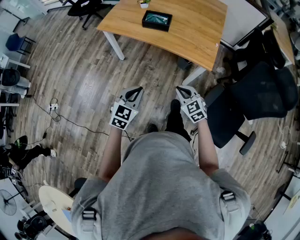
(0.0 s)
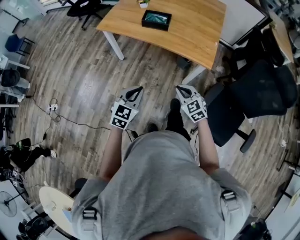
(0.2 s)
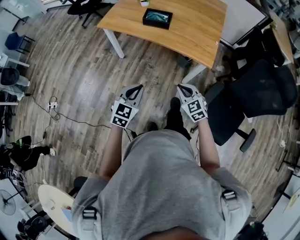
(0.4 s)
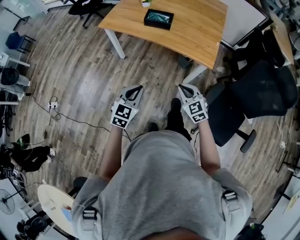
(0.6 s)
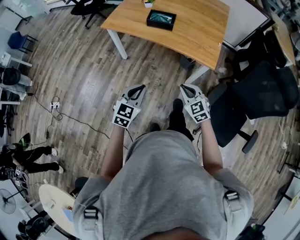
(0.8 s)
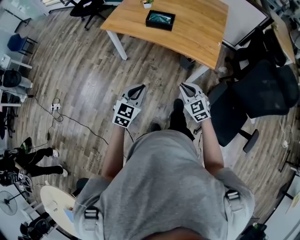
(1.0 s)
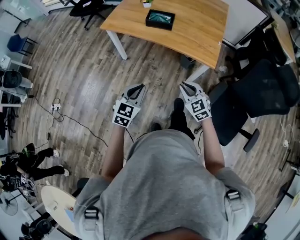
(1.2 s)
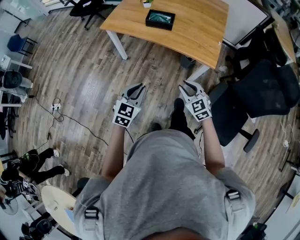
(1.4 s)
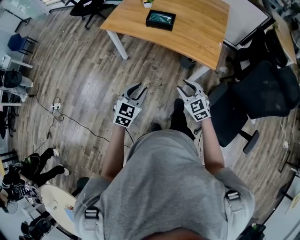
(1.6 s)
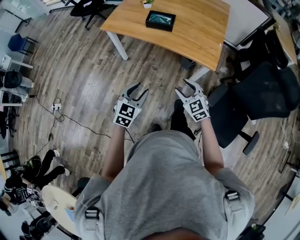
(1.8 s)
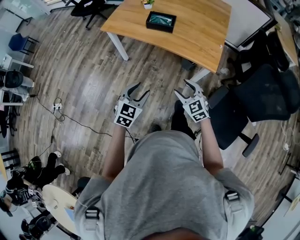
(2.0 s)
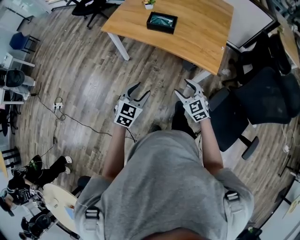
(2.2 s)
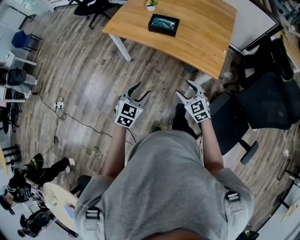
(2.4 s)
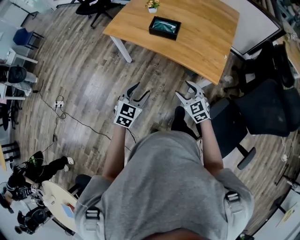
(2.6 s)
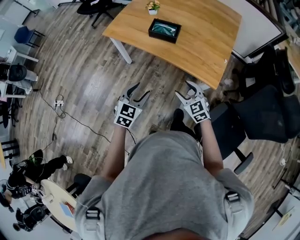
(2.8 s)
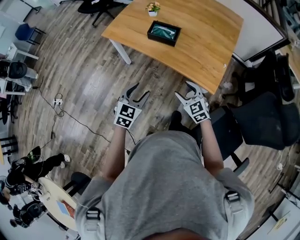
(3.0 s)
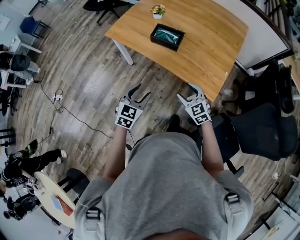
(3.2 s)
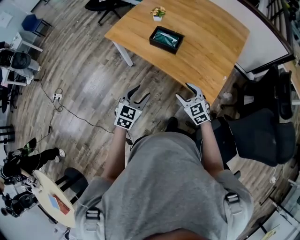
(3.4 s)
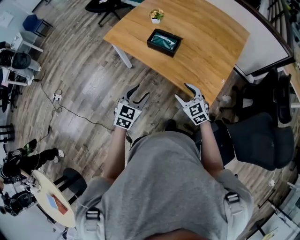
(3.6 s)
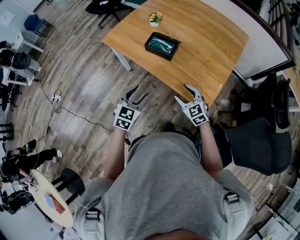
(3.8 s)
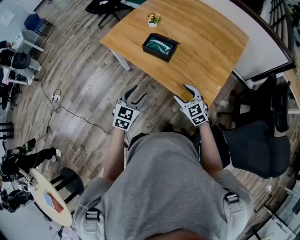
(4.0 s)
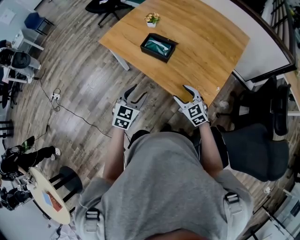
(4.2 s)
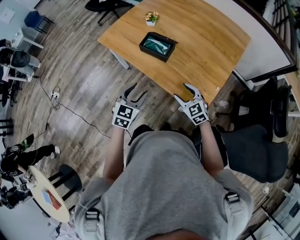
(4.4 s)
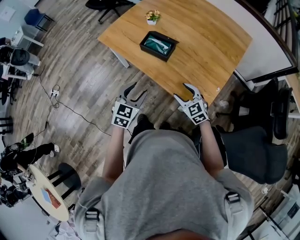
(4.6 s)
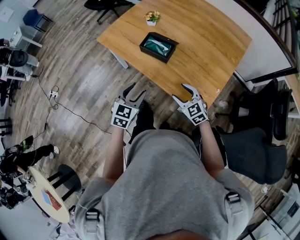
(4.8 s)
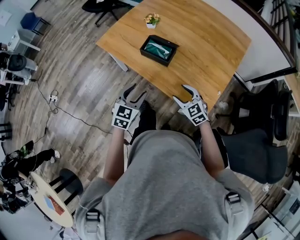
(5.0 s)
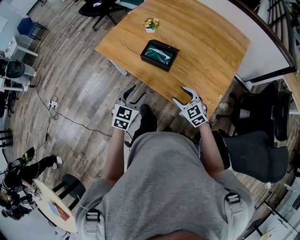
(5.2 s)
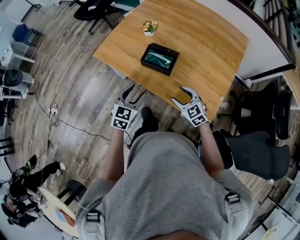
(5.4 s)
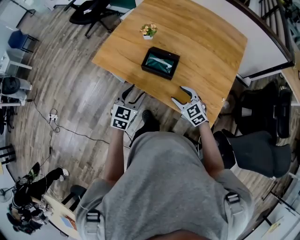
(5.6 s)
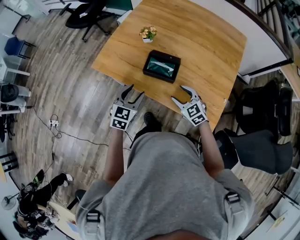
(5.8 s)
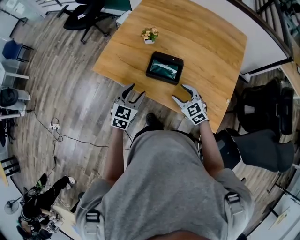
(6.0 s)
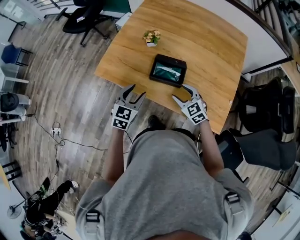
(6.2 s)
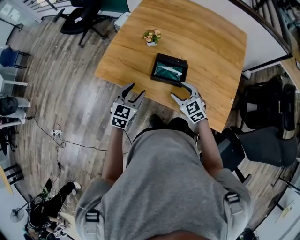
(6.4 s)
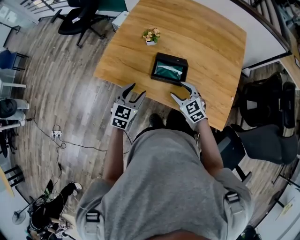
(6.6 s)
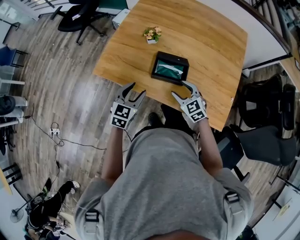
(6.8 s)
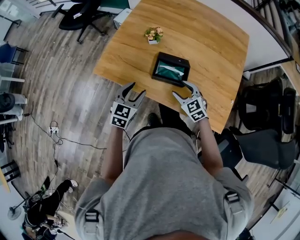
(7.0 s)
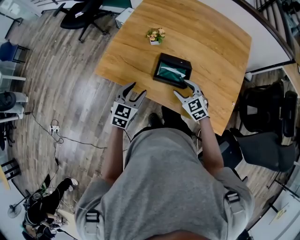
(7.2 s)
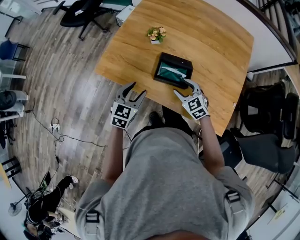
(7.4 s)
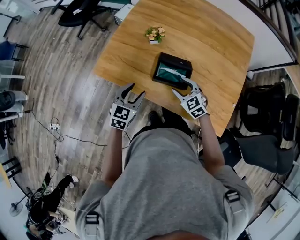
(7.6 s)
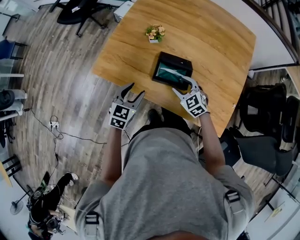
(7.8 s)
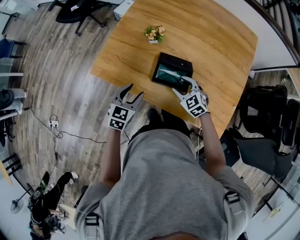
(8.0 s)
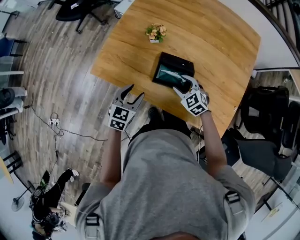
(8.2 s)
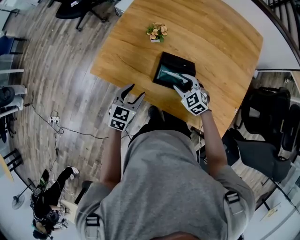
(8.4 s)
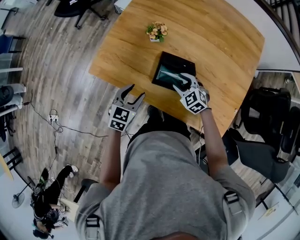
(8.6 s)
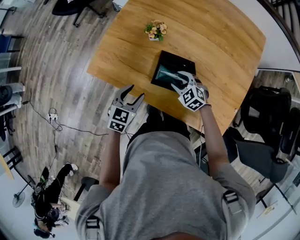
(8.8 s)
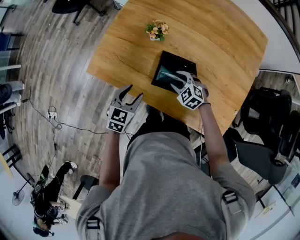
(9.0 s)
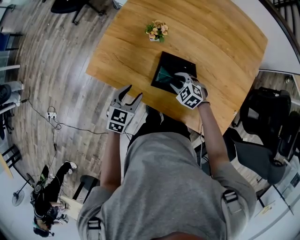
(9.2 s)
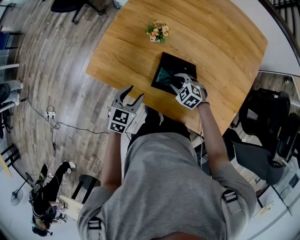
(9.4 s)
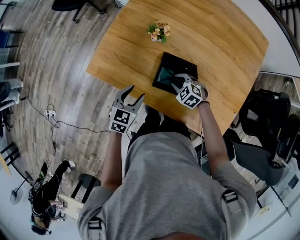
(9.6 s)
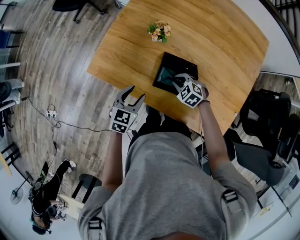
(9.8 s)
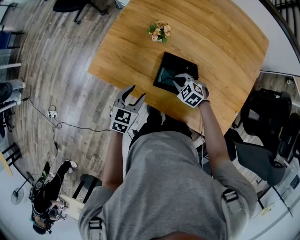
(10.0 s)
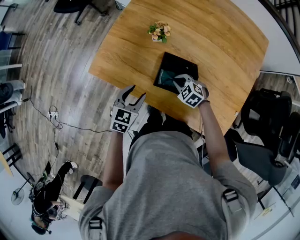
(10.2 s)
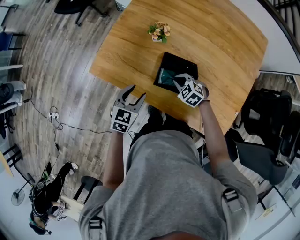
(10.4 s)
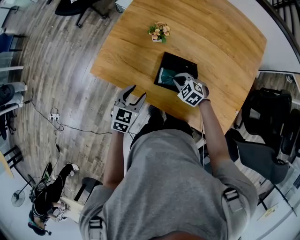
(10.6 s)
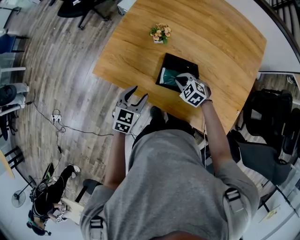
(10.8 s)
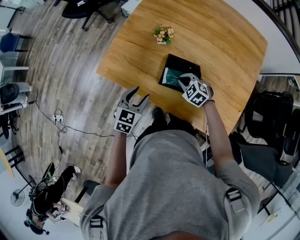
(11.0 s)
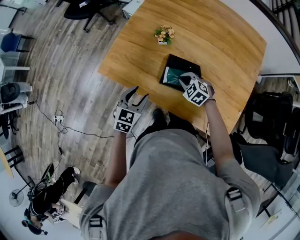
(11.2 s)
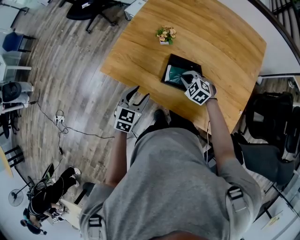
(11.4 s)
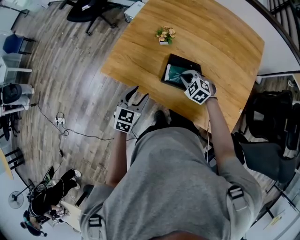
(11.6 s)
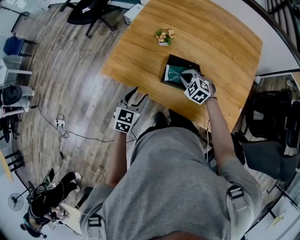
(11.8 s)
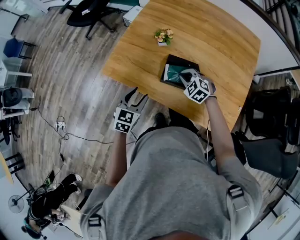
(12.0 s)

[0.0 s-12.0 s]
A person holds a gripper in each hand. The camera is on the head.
0.0 to 1.6 s: The left gripper opens, while the right gripper opens.
1.6 to 3.0 s: The left gripper moves forward and to the right, some 15 cm, and opens up, while the right gripper shifts roughly 15 cm forward, and opens its fingers.
3.0 to 4.4 s: The right gripper heads forward and to the right, covering approximately 15 cm. Meanwhile the left gripper heads to the right and forward, covering approximately 15 cm.
4.4 to 6.0 s: The grippers both shift forward and to the left by roughly 20 cm.
6.0 to 7.6 s: Both grippers move forward, approximately 5 cm.
7.6 to 9.0 s: The right gripper travels downward and forward by approximately 10 cm, and swivels approximately 20 degrees, while the left gripper heads downward, covering approximately 5 cm.
9.0 to 10.4 s: The right gripper closes its fingers.
10.4 to 12.0 s: The left gripper is displaced upward and backward by about 10 cm; the right gripper heads upward, covering some 10 cm.

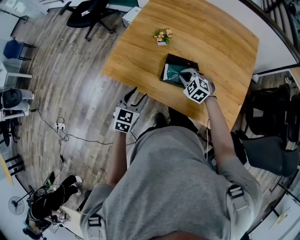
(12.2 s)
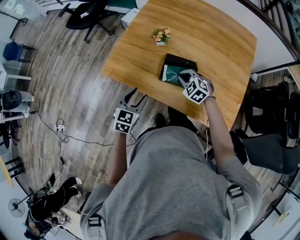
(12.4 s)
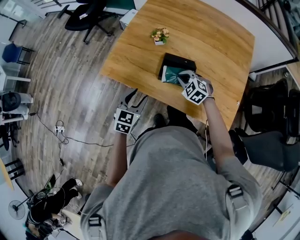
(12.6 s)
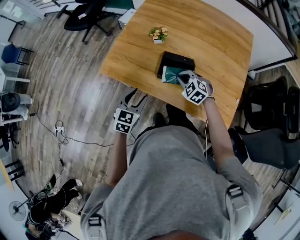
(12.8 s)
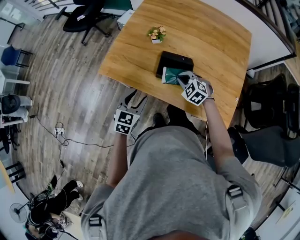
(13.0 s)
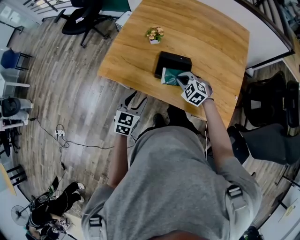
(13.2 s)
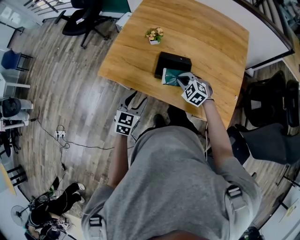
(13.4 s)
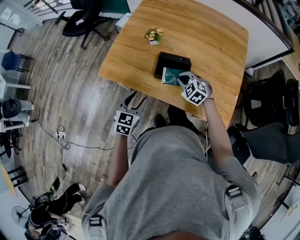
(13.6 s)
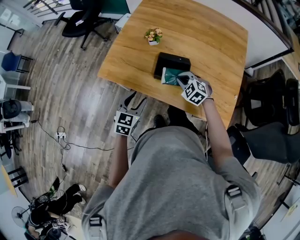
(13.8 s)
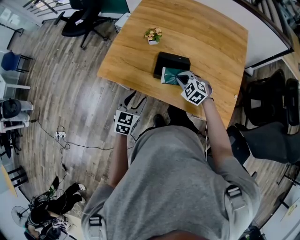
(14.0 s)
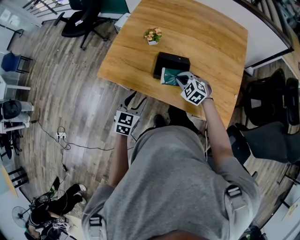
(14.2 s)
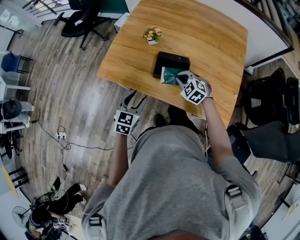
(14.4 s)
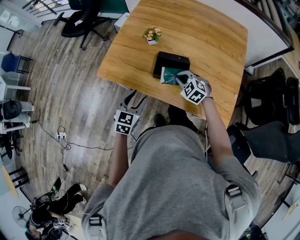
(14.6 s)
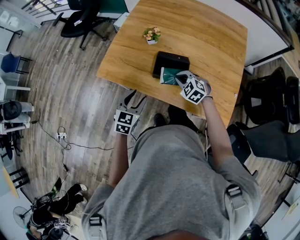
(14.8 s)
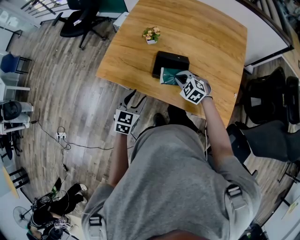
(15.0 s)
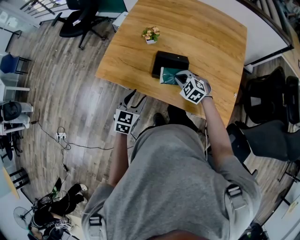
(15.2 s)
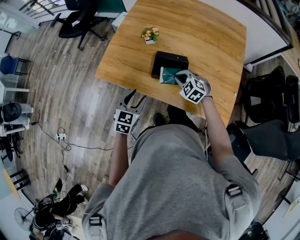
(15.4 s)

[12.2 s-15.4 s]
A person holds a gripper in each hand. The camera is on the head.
12.2 to 13.8 s: Both grippers travel together backward, approximately 5 cm.
13.8 to 15.4 s: The grippers make only small movements.

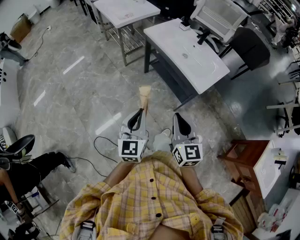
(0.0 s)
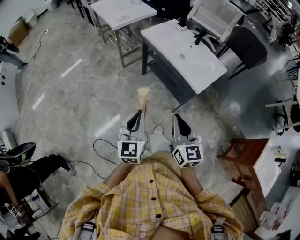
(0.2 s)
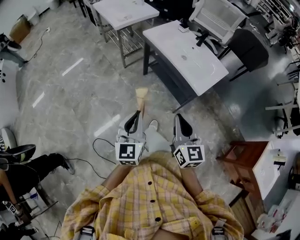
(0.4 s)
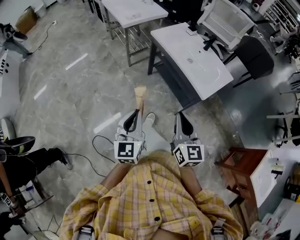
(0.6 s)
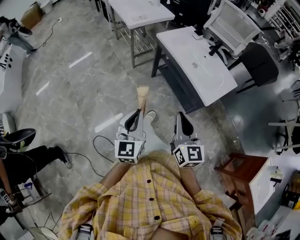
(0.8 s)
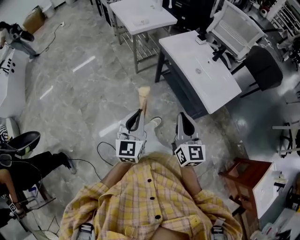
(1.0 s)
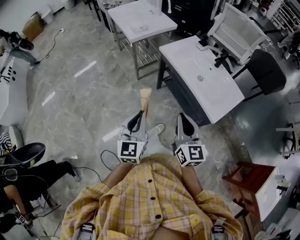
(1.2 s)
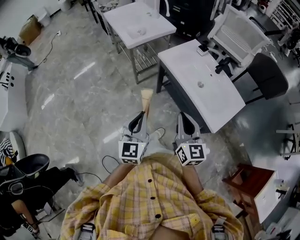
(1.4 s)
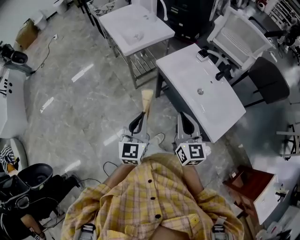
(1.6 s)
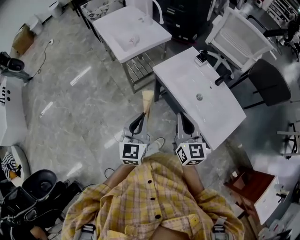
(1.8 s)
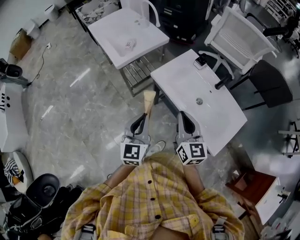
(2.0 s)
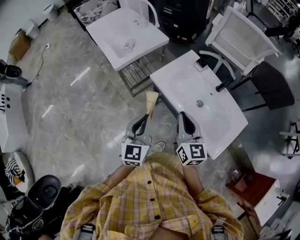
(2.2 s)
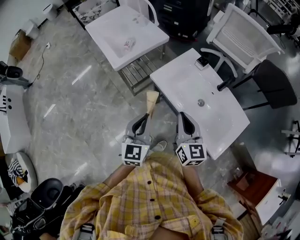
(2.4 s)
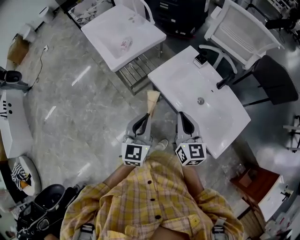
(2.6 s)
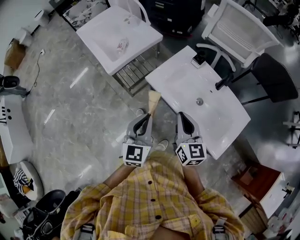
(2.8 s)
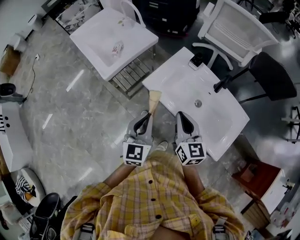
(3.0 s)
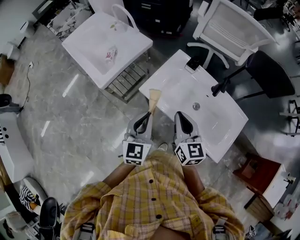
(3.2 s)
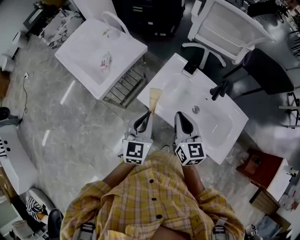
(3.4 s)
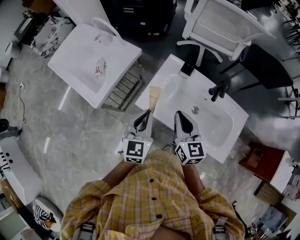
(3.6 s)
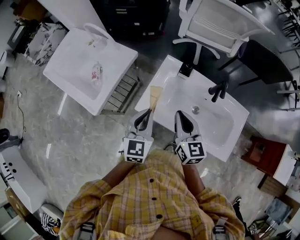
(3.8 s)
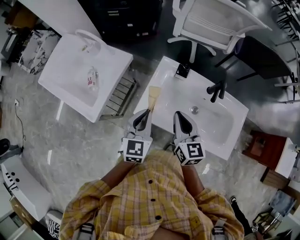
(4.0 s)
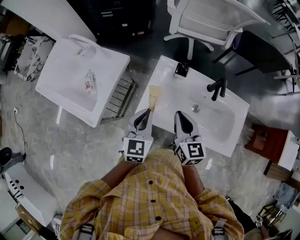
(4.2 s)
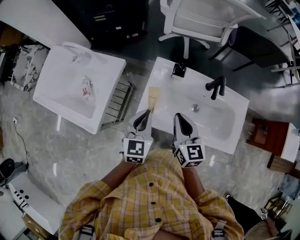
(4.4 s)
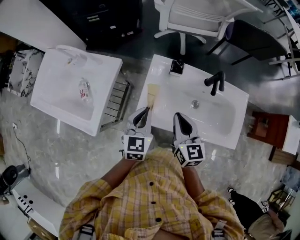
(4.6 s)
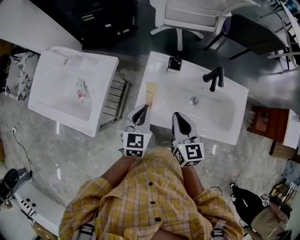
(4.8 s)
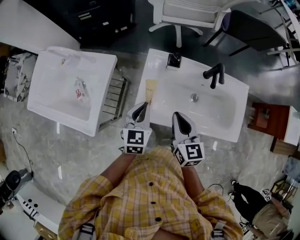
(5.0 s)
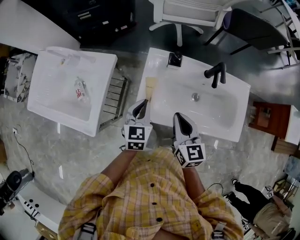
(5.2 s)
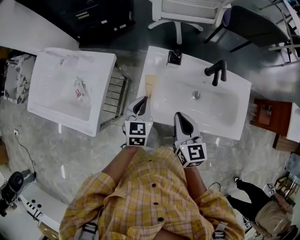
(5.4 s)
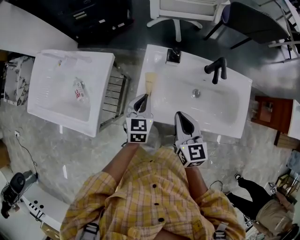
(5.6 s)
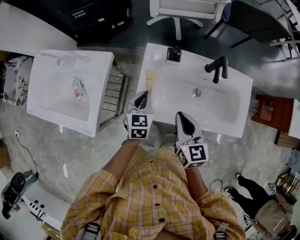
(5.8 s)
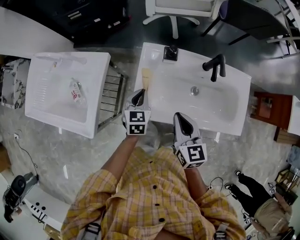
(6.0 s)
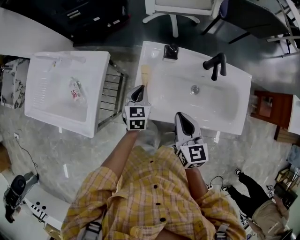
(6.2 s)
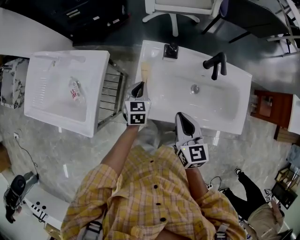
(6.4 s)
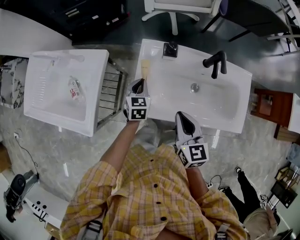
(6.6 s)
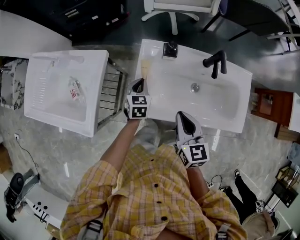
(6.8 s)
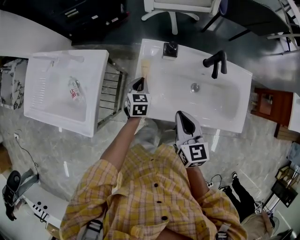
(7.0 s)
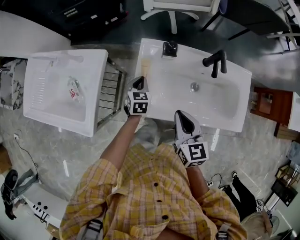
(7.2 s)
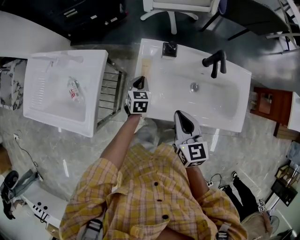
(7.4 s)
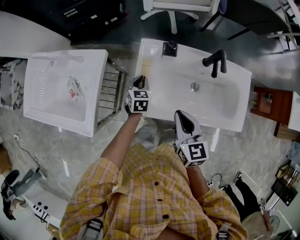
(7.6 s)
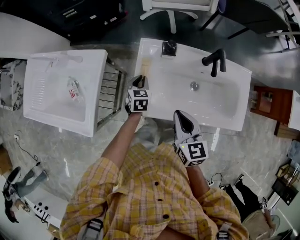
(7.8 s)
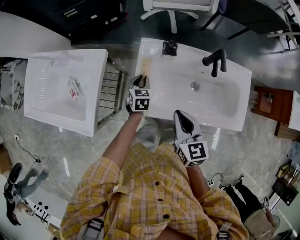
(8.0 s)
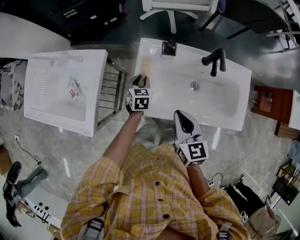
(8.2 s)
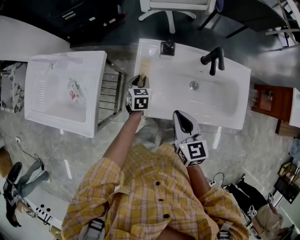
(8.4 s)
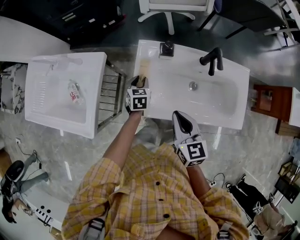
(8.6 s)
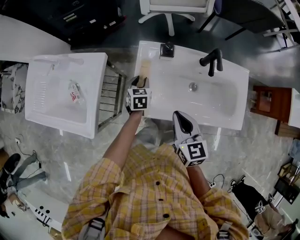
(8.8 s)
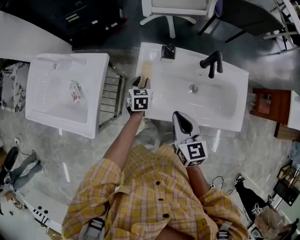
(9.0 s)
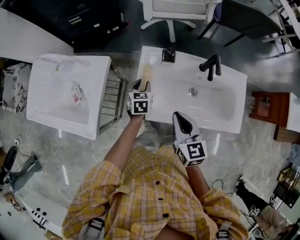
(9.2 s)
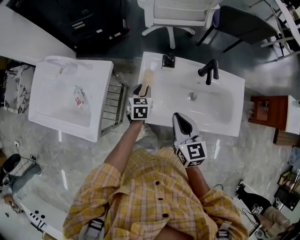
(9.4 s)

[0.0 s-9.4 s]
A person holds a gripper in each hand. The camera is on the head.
0.0 to 1.6 s: The grippers both shift forward by about 30 cm.
1.6 to 3.2 s: Both grippers move forward, about 25 cm. The left gripper changes its angle by some 20 degrees.
3.2 to 4.8 s: The left gripper moves some 20 cm, and changes its angle by approximately 30 degrees. Meanwhile the right gripper shifts by about 10 cm, and turns by some 30 degrees.
4.8 to 6.2 s: The left gripper is displaced downward and forward by some 15 cm.
6.2 to 7.8 s: The left gripper shifts roughly 5 cm downward.
7.8 to 9.4 s: The left gripper heads upward, covering approximately 5 cm.
